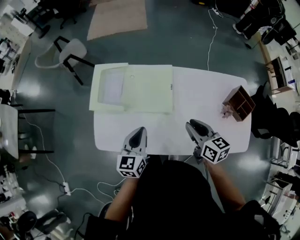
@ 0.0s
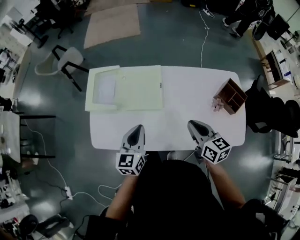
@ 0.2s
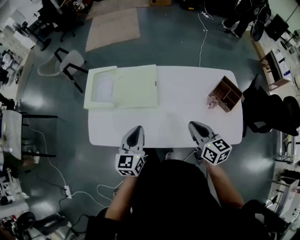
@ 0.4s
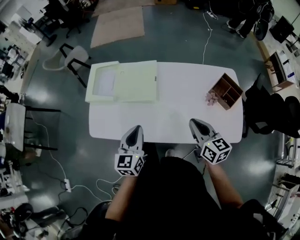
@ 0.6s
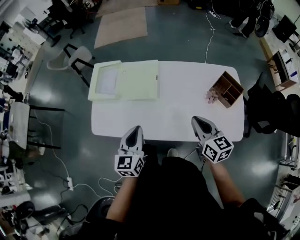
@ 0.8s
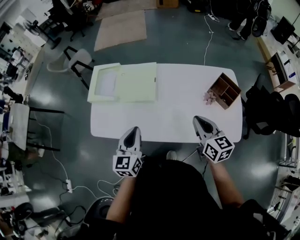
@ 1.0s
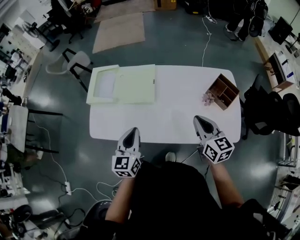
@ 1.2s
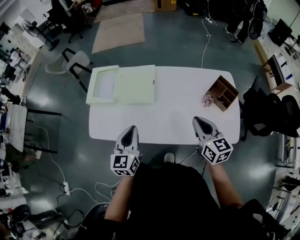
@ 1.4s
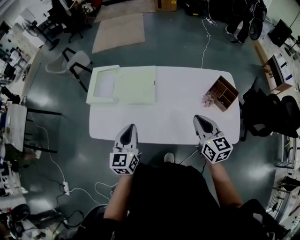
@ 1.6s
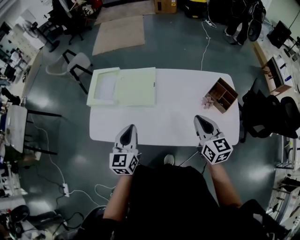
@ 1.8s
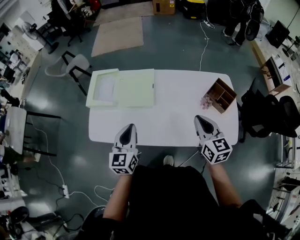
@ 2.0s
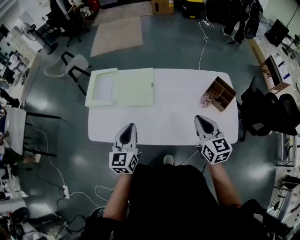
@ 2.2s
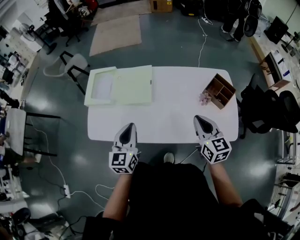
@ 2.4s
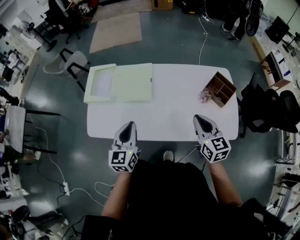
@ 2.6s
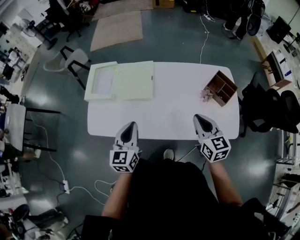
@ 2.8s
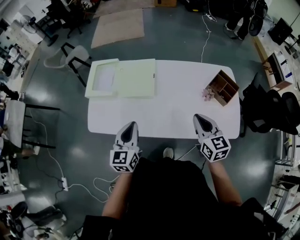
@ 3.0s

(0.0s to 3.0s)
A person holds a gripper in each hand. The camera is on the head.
0.0s - 1.6s: The right gripper goes approximately 20 cm to the right, backward and upward. The left gripper goes some 15 cm backward, to the right and upward.
1.6s - 3.0s: The grippers make only small movements.

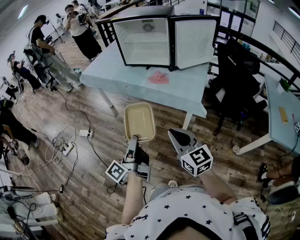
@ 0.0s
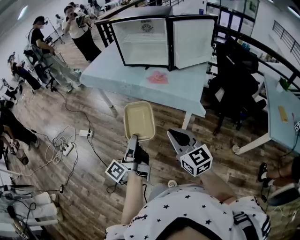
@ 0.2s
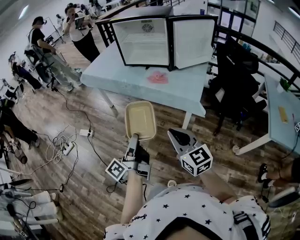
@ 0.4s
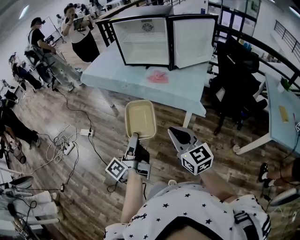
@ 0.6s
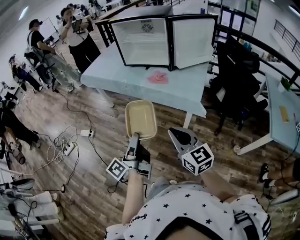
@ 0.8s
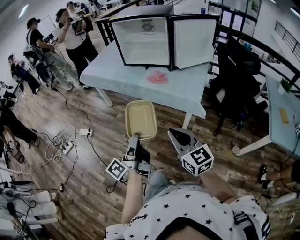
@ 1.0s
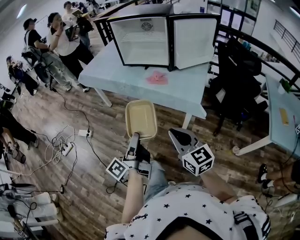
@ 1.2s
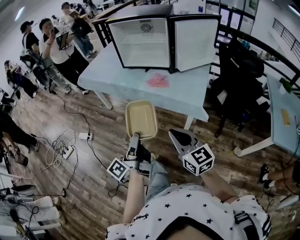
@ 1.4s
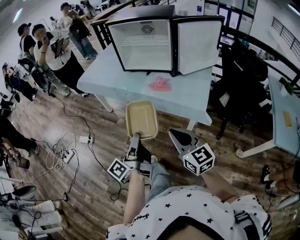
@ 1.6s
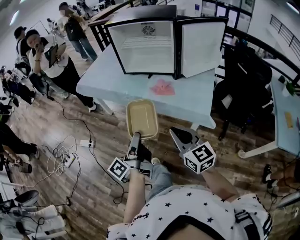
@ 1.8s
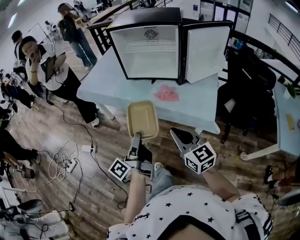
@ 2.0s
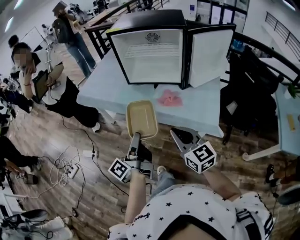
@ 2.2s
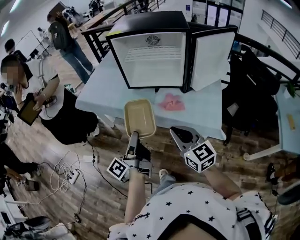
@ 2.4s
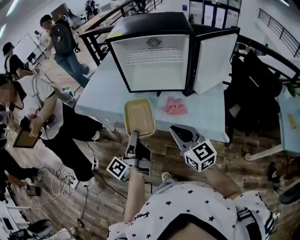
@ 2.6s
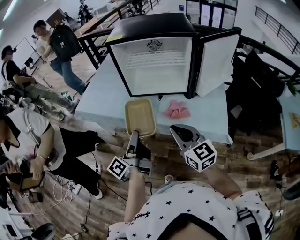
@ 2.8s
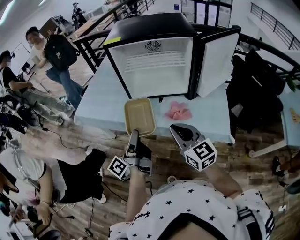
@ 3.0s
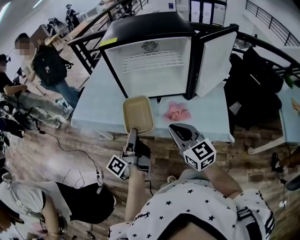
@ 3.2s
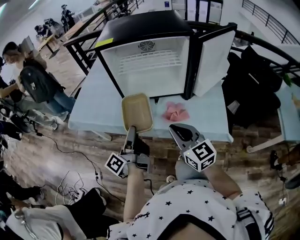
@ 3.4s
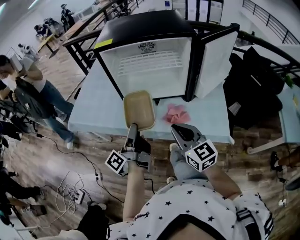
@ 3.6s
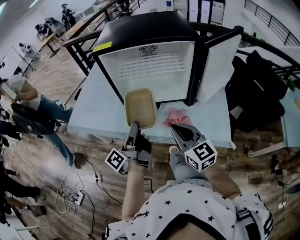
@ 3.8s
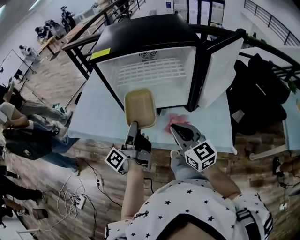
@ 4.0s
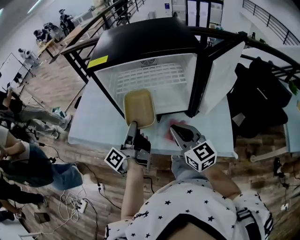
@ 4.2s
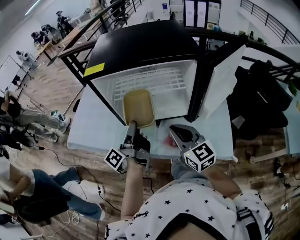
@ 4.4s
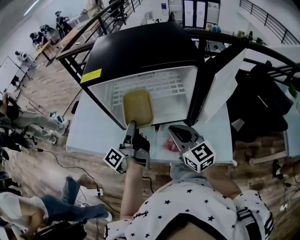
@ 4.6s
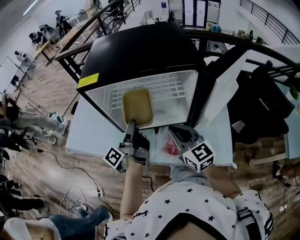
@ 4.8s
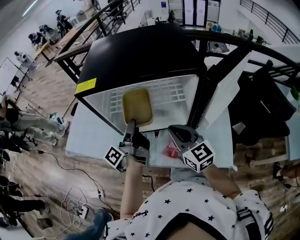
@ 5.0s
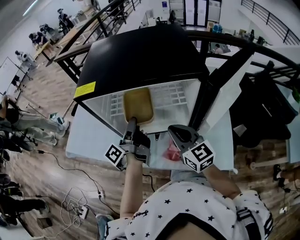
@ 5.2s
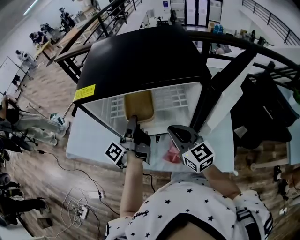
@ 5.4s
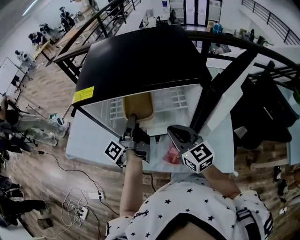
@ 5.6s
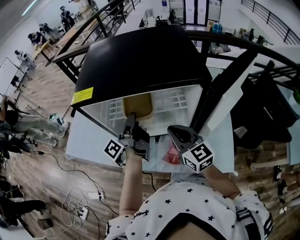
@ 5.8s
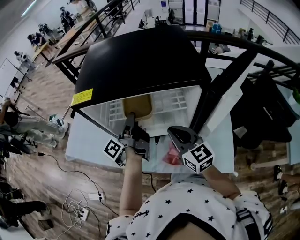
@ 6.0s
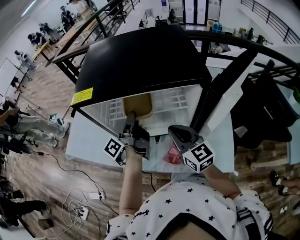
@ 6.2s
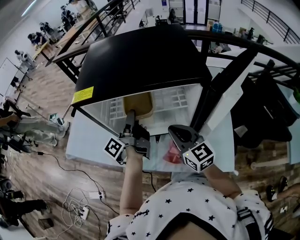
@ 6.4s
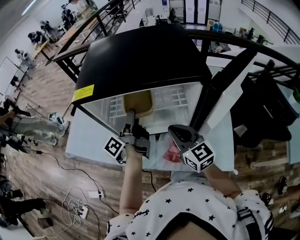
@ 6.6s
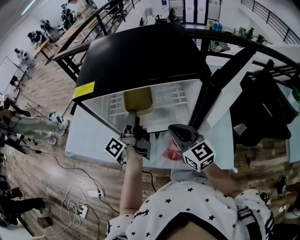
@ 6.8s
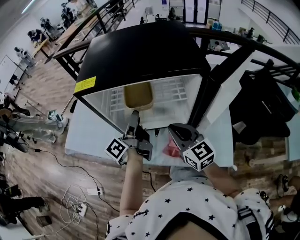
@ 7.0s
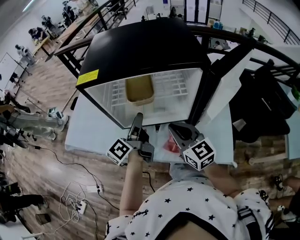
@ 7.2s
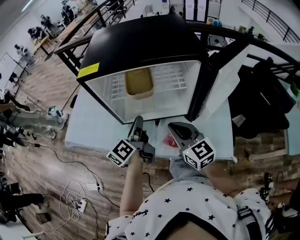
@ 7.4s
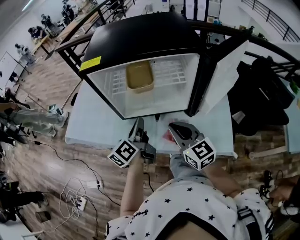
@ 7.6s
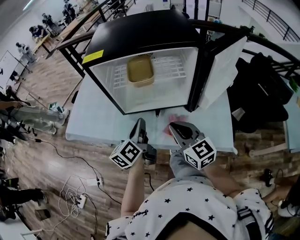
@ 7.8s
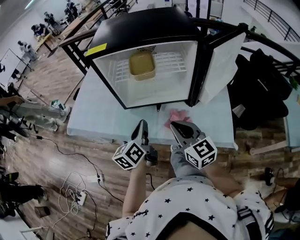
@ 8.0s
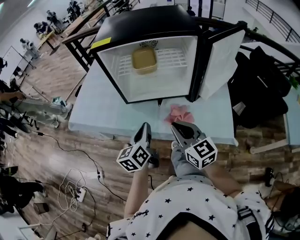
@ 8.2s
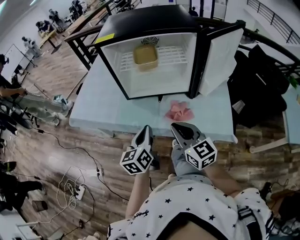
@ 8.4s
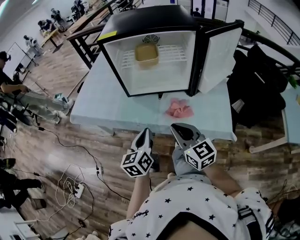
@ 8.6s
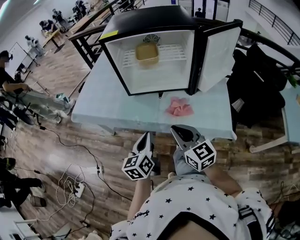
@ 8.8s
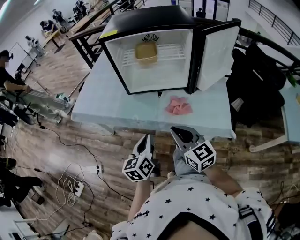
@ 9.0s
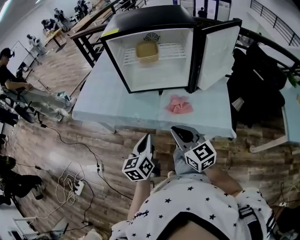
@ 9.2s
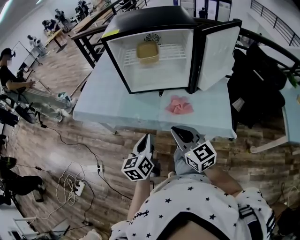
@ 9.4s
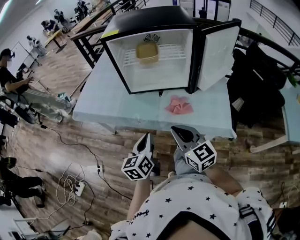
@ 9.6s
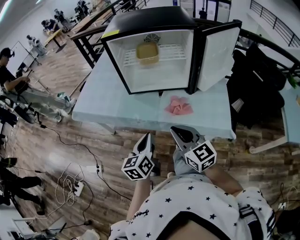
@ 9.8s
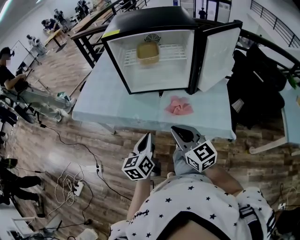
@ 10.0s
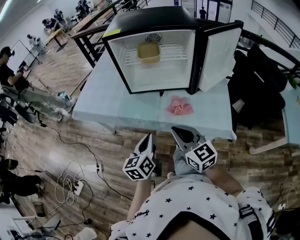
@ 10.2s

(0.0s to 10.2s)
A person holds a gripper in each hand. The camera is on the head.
0.0s - 1.4s: The left gripper shifts approximately 5 cm forward.
1.4s - 3.0s: The two grippers go about 35 cm forward.
3.0s - 4.4s: The grippers both shift forward by roughly 20 cm.
4.4s - 5.8s: The grippers both shift forward by roughly 10 cm.
5.8s - 7.2s: The left gripper travels backward by roughly 5 cm, and opens, then closes once more. Meanwhile the right gripper changes place by approximately 5 cm.
7.2s - 8.8s: The grippers both shift backward by roughly 25 cm. The left gripper turns by about 40 degrees, and closes its fingers.
8.8s - 10.2s: There are only small adjustments of the grippers.

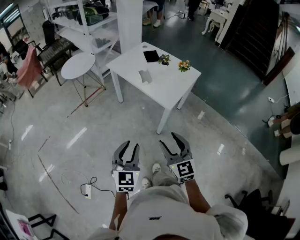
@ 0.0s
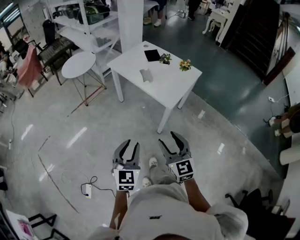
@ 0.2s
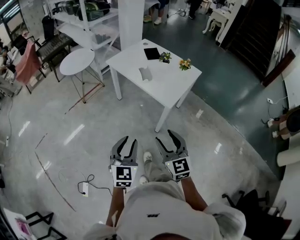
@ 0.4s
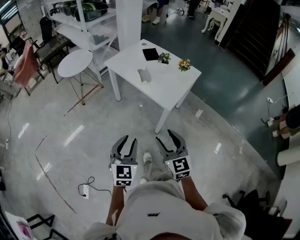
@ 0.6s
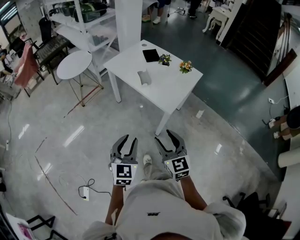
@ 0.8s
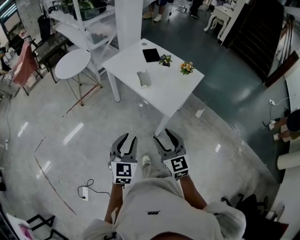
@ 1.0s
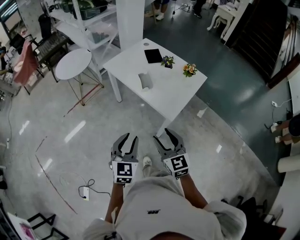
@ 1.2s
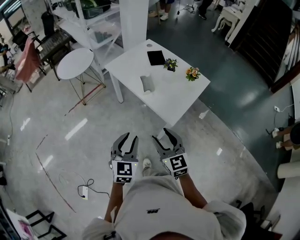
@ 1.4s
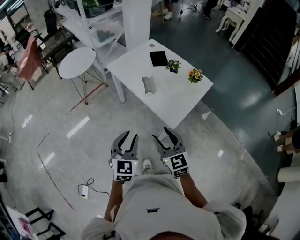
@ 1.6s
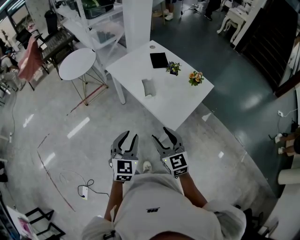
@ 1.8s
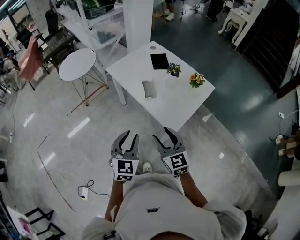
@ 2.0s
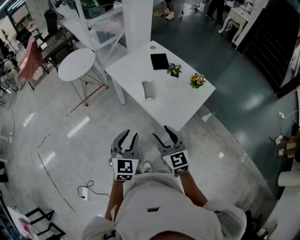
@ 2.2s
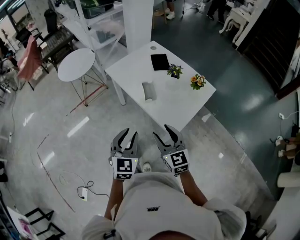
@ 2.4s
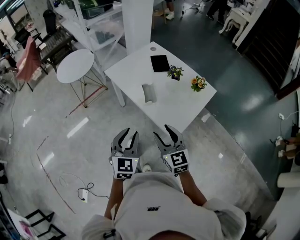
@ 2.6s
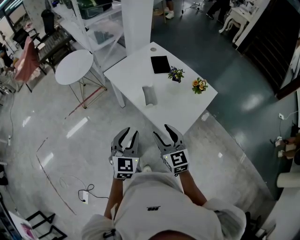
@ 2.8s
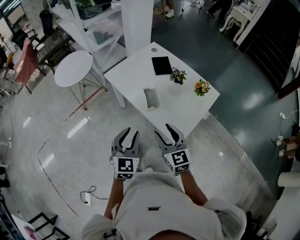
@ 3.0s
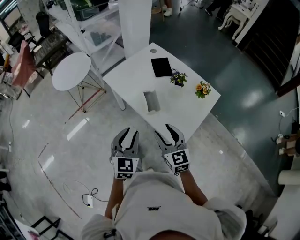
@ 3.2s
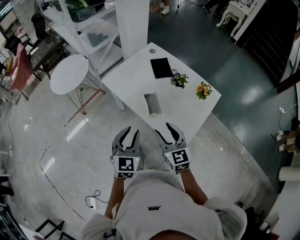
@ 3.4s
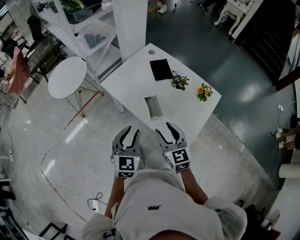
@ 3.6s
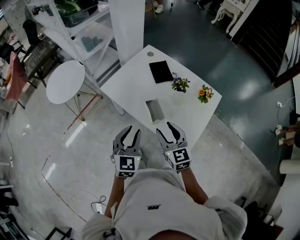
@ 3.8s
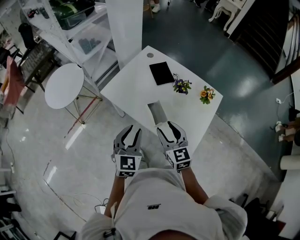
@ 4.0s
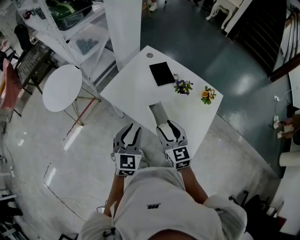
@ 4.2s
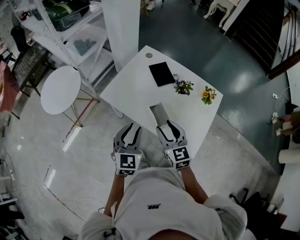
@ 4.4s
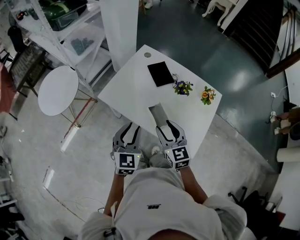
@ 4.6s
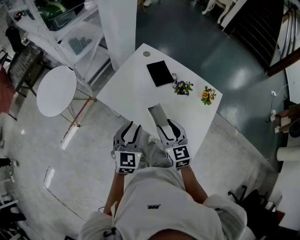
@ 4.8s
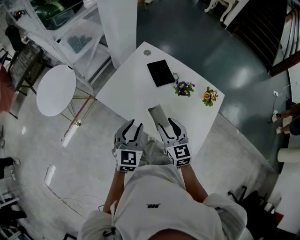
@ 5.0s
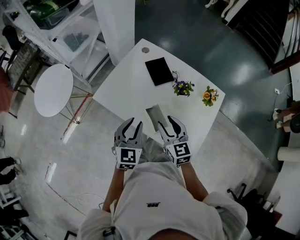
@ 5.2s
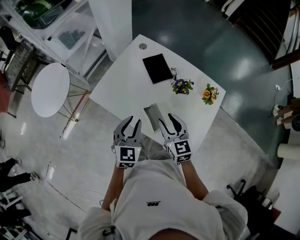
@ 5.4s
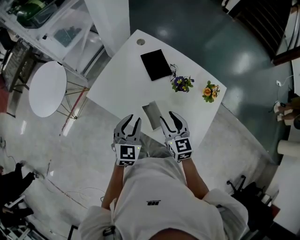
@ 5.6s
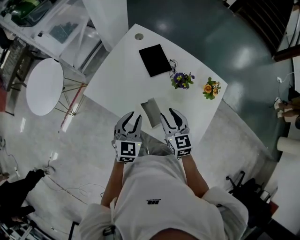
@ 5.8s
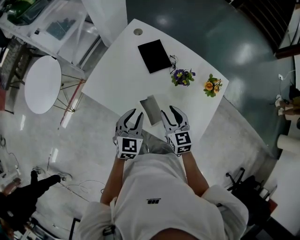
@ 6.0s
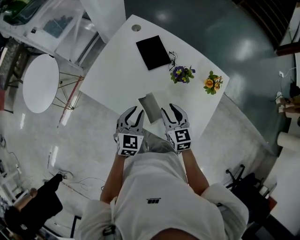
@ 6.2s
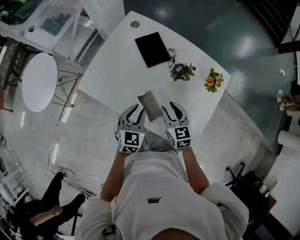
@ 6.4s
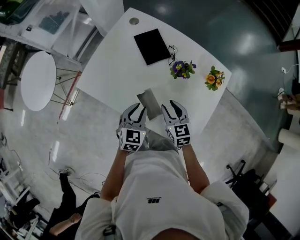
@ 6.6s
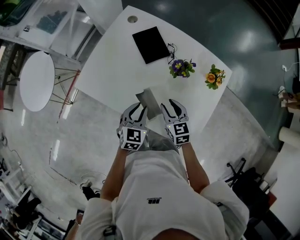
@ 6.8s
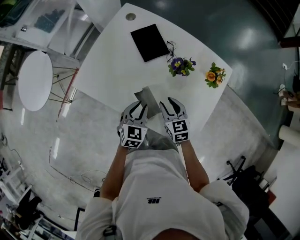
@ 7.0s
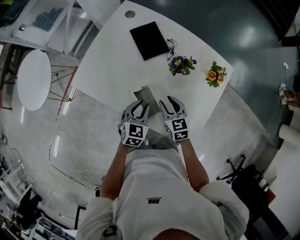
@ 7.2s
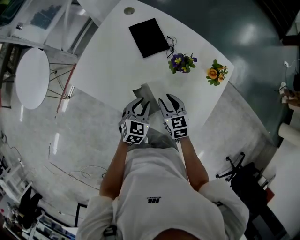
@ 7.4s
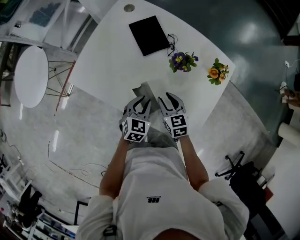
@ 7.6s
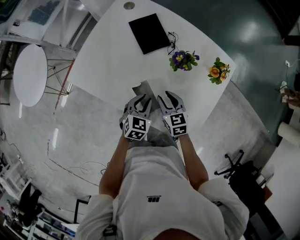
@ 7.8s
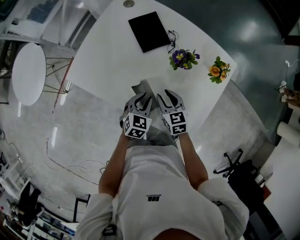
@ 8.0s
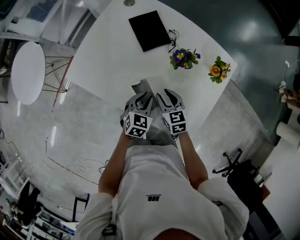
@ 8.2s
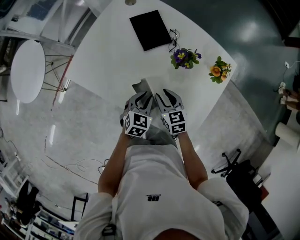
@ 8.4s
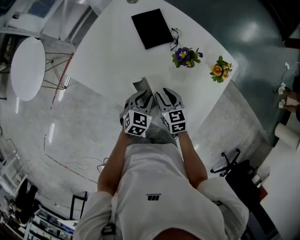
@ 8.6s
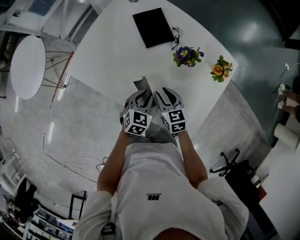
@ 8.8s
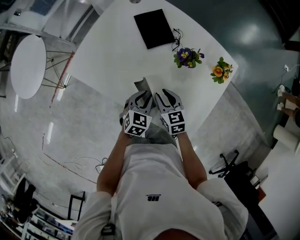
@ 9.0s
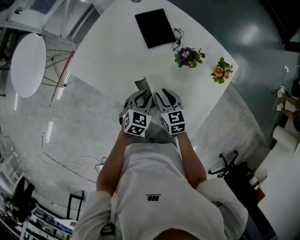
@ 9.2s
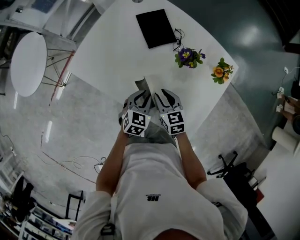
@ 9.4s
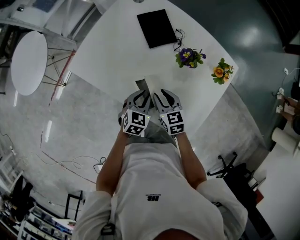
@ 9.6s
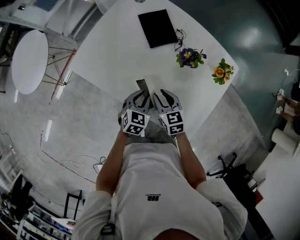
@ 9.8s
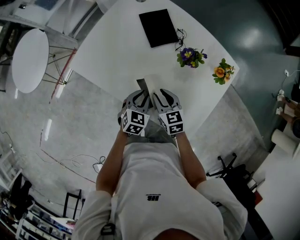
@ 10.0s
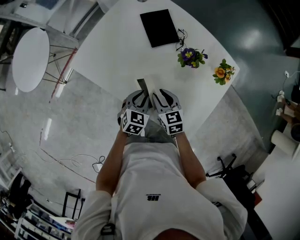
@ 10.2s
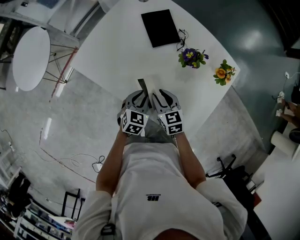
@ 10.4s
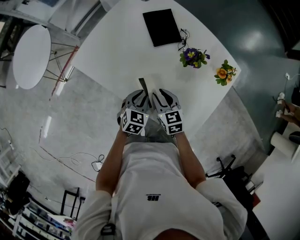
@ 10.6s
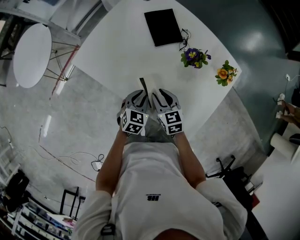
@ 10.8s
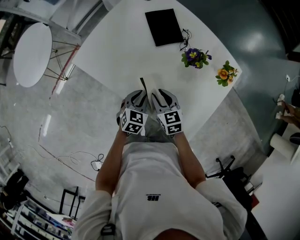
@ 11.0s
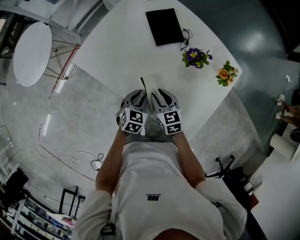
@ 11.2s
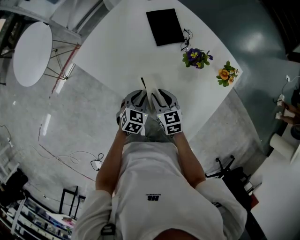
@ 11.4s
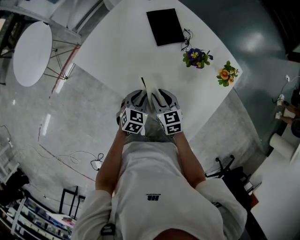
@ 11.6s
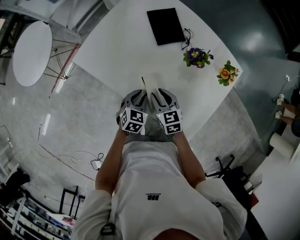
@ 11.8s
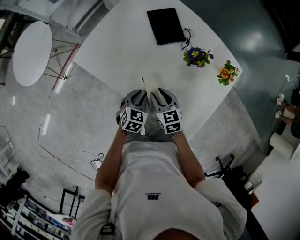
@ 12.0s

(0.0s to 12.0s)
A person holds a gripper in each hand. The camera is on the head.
0.0s - 1.6s: The two grippers go approximately 25 cm forward.
1.6s - 3.0s: Both grippers travel together forward, roughly 15 cm.
3.0s - 4.4s: The left gripper shifts approximately 20 cm forward. The right gripper is displaced forward and to the left by roughly 20 cm.
4.4s - 6.0s: The two grippers go some 20 cm forward, downward and to the right.
6.0s - 7.6s: The right gripper travels downward by about 10 cm, while the left gripper heads downward and to the right, covering approximately 15 cm.
7.6s - 10.4s: The grippers make only small movements.
10.4s - 12.0s: The grippers move only a little.
